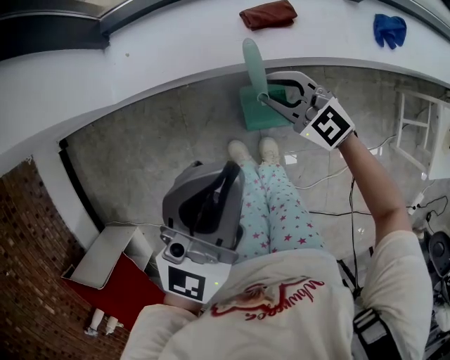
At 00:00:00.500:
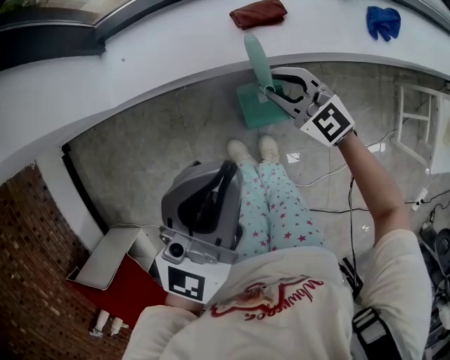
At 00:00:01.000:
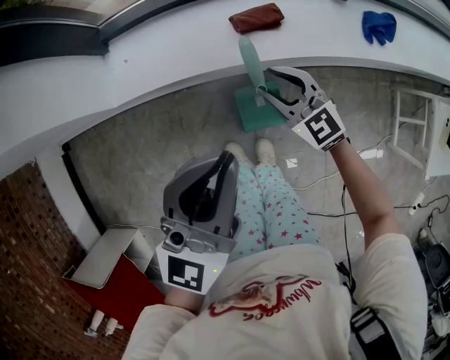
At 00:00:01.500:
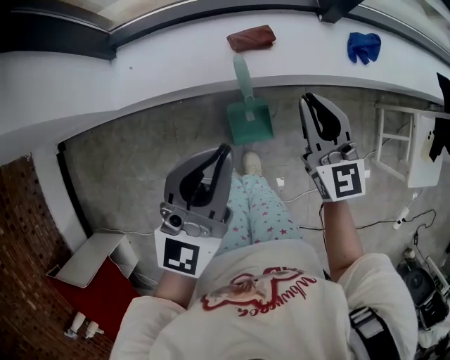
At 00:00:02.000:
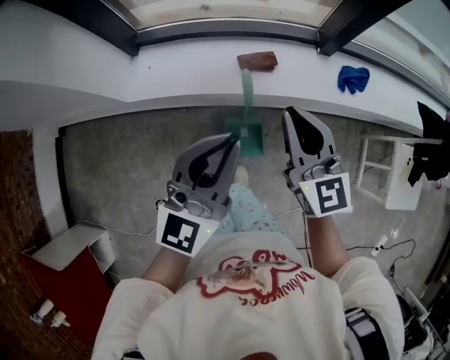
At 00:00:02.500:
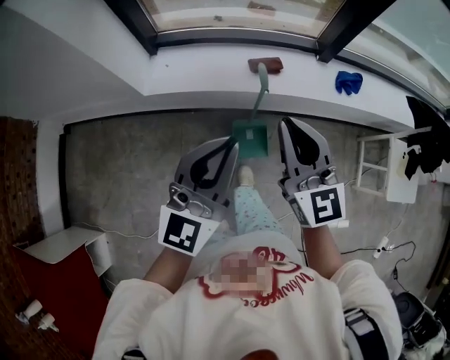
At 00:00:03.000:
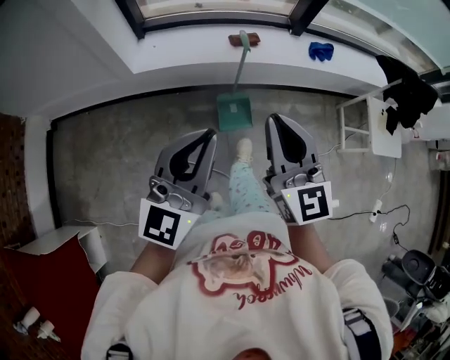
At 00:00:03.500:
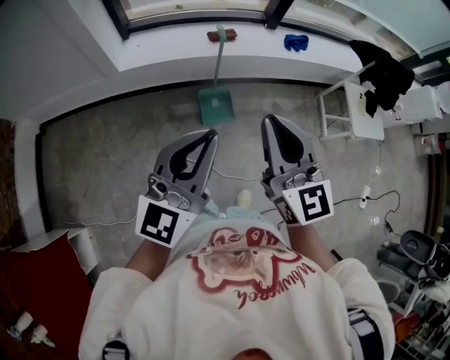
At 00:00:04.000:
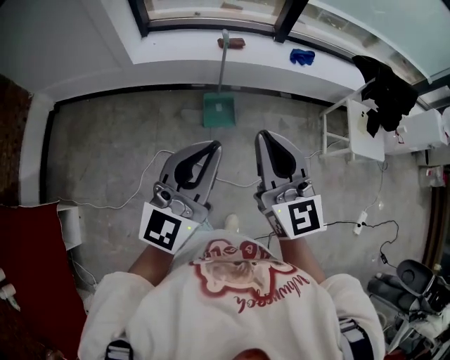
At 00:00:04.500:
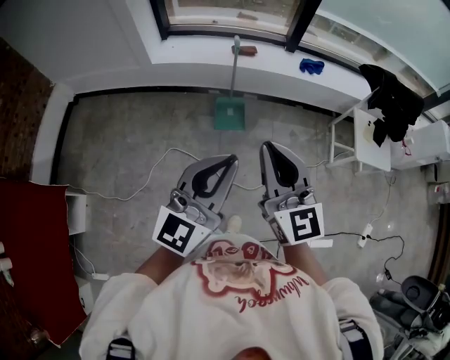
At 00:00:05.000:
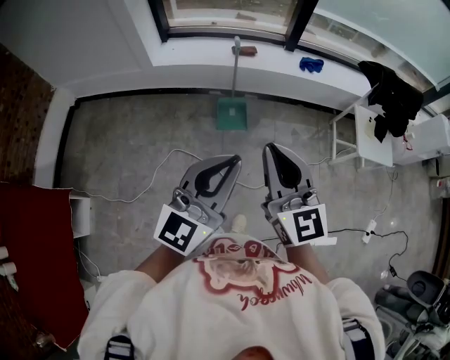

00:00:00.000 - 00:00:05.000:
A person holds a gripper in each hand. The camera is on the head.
00:00:00.000 - 00:00:02.500: The left gripper moves backward and upward, about 20 cm. Meanwhile the right gripper travels upward and backward by roughly 40 cm, and swivels roughly 40 degrees.
00:00:02.500 - 00:00:05.000: Both grippers are carried backward, some 50 cm.

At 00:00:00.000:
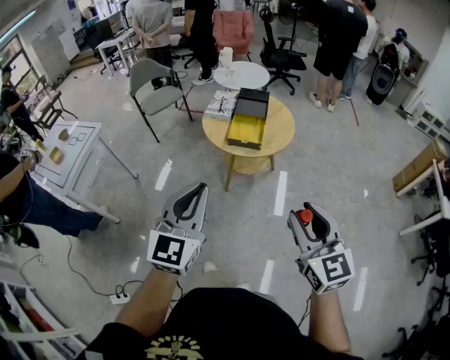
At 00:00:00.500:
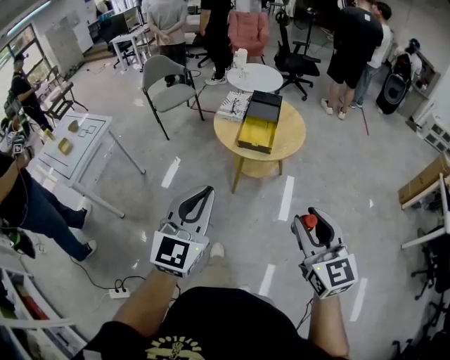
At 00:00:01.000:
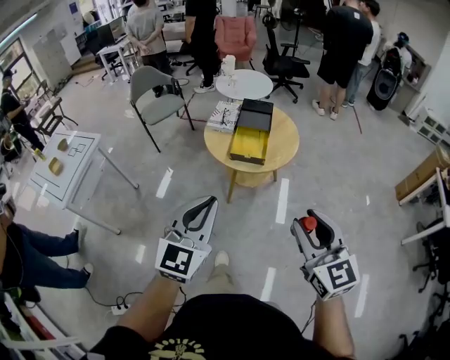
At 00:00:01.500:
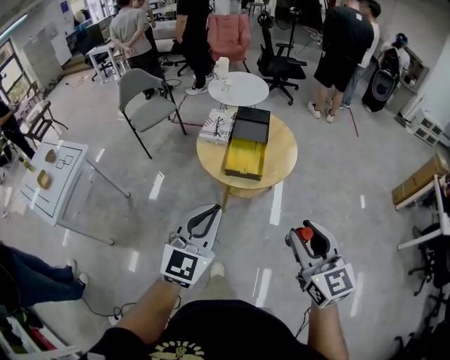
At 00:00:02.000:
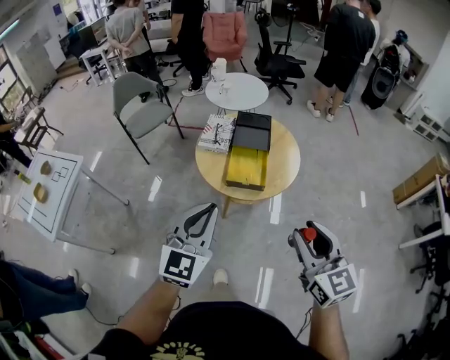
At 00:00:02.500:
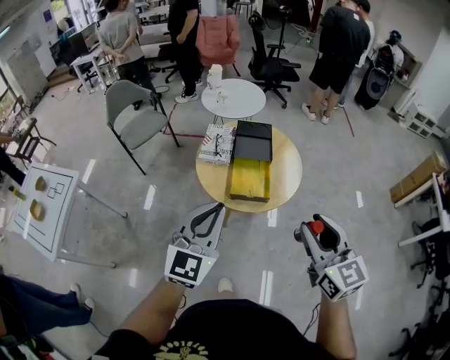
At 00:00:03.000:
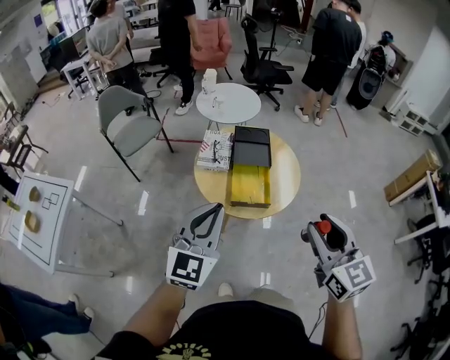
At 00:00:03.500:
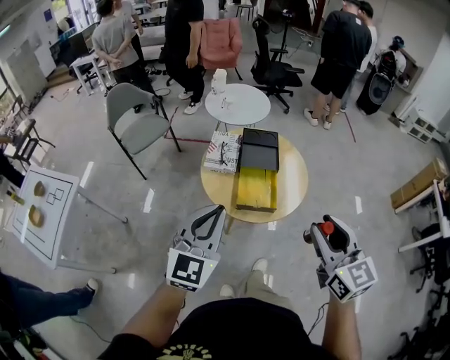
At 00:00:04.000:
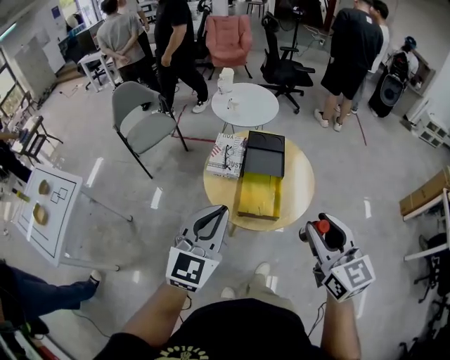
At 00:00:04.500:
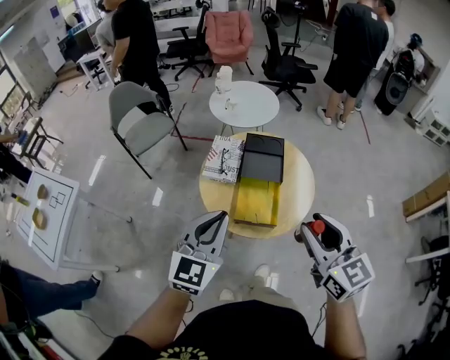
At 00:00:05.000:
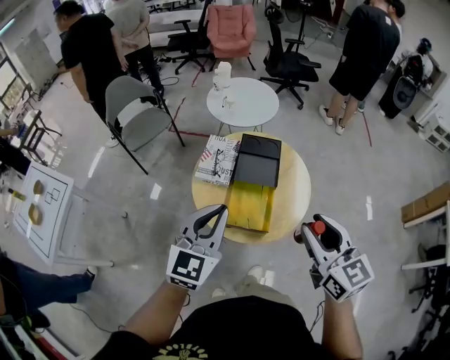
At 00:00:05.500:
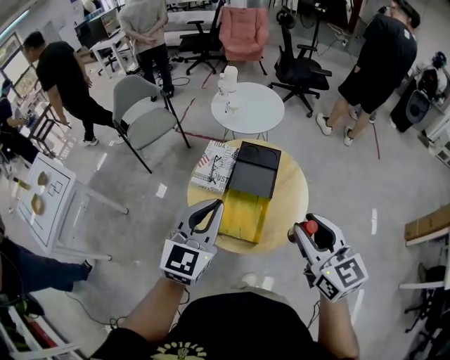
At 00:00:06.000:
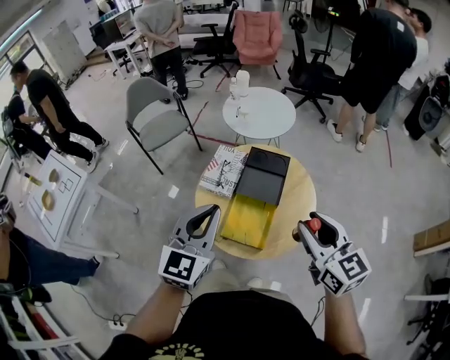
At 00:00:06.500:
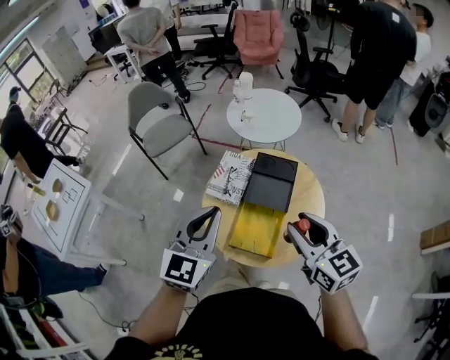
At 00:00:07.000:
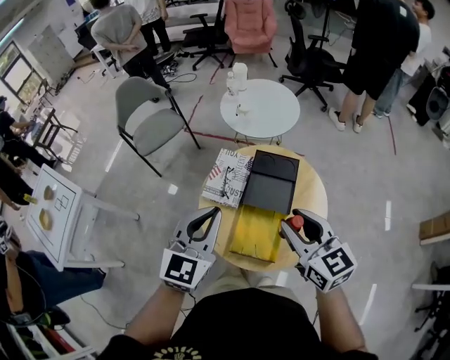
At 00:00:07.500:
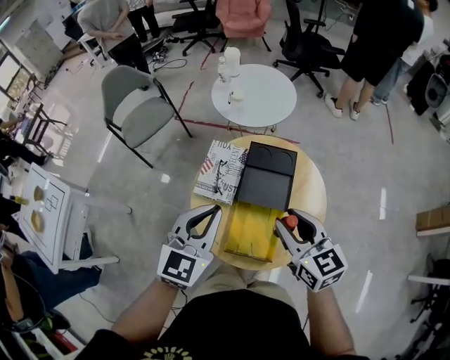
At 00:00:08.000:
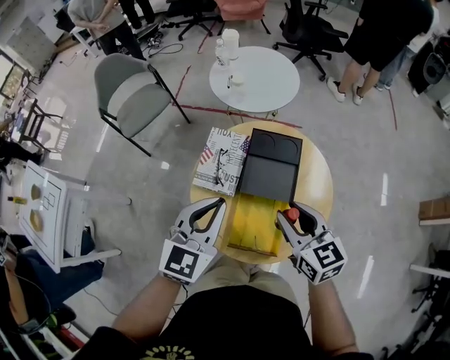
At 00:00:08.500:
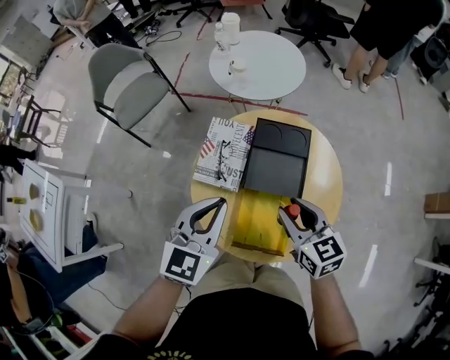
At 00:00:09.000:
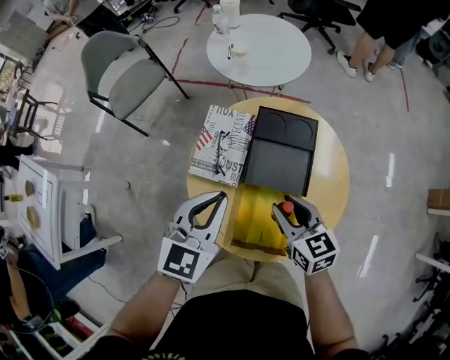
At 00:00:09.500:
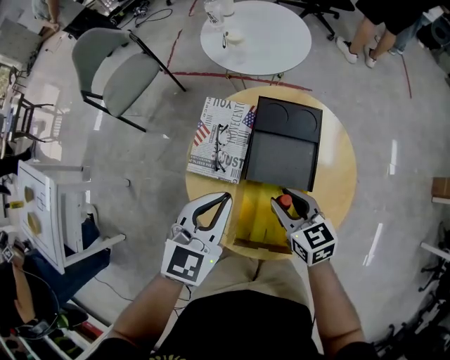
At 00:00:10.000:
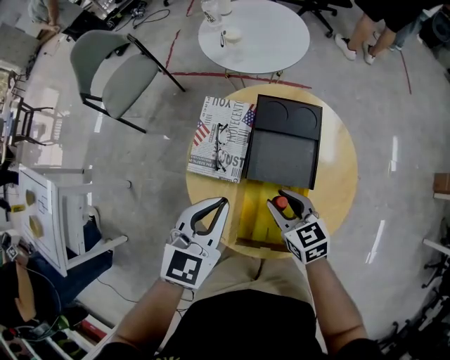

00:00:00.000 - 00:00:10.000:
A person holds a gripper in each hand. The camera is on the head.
00:00:00.000 - 00:00:02.000: Both grippers travel together forward, some 25 cm.
00:00:02.000 - 00:00:04.000: Both grippers move forward, approximately 15 cm.
00:00:04.000 - 00:00:06.000: Both grippers move forward and to the right, about 20 cm.
00:00:06.000 - 00:00:08.000: The left gripper is displaced forward and downward by about 20 cm, while the right gripper goes some 20 cm downward, forward and to the left.
00:00:08.000 - 00:00:10.000: The left gripper shifts approximately 15 cm downward. Meanwhile the right gripper shifts approximately 20 cm downward.

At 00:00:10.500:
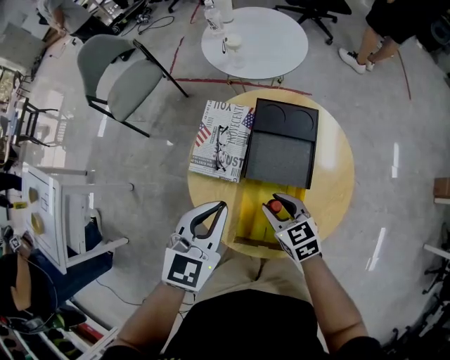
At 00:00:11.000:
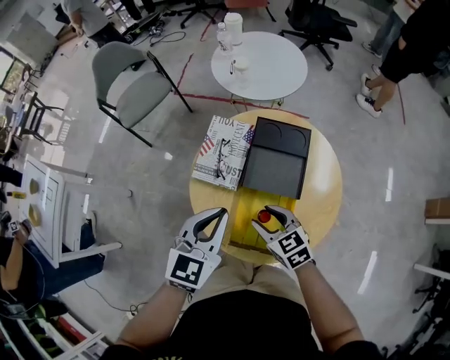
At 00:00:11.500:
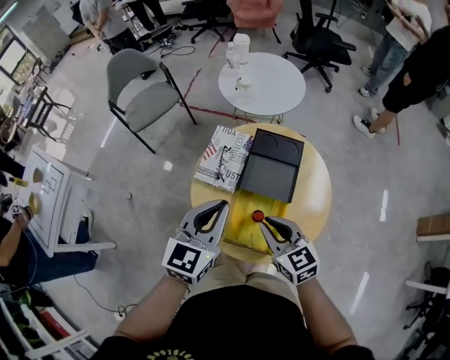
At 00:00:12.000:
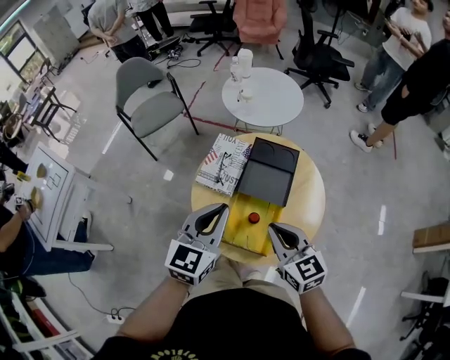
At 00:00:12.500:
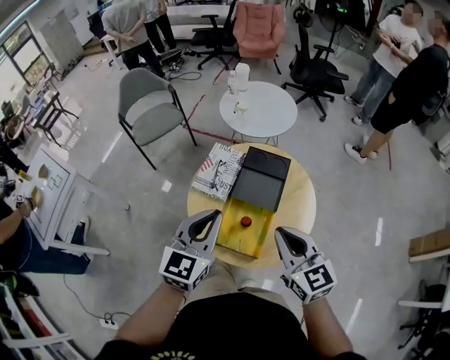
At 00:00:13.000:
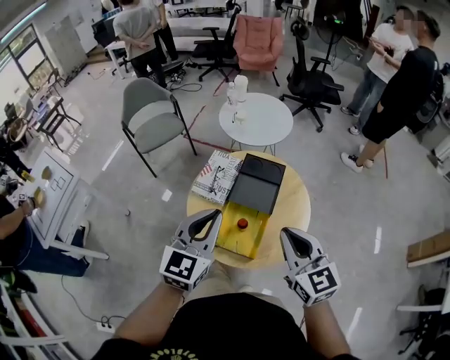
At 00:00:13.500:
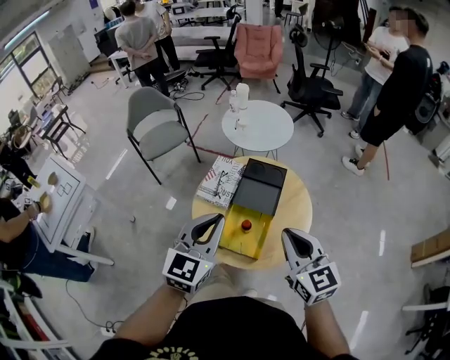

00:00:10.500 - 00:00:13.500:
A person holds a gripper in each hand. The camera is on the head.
00:00:10.500 - 00:00:12.000: The right gripper heads upward and backward, covering about 20 cm, and closes up. The left gripper moves upward and backward, approximately 15 cm.
00:00:12.000 - 00:00:13.500: The left gripper heads upward and backward, covering roughly 10 cm. The right gripper shifts approximately 15 cm upward, backward and to the right.

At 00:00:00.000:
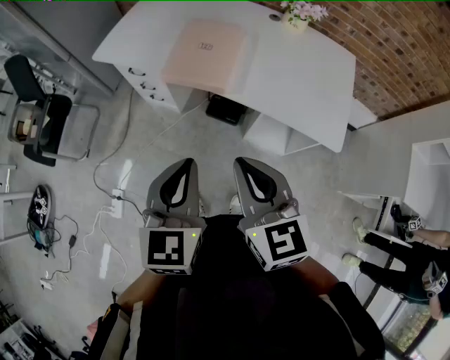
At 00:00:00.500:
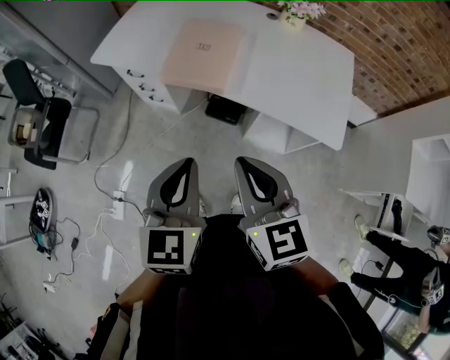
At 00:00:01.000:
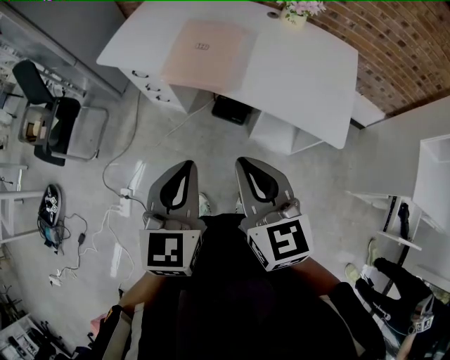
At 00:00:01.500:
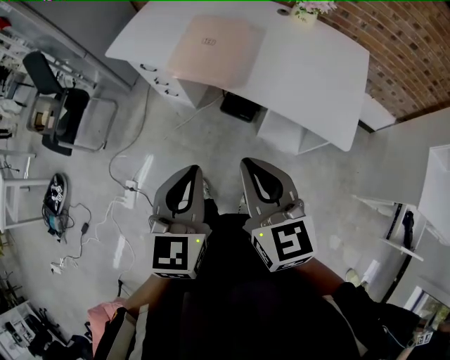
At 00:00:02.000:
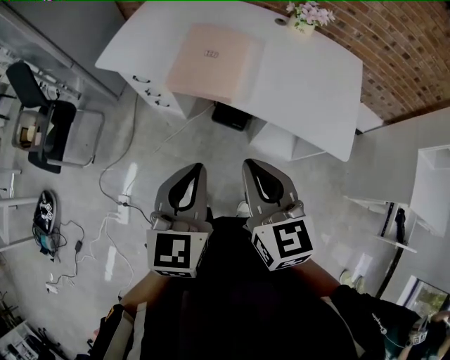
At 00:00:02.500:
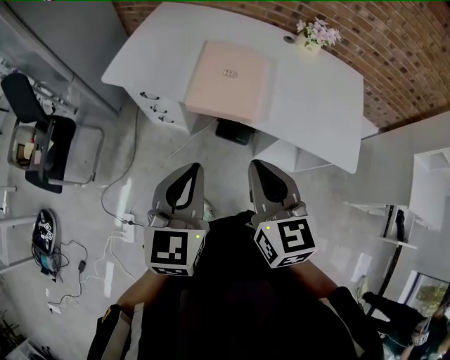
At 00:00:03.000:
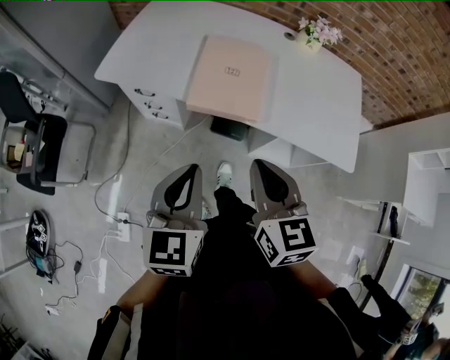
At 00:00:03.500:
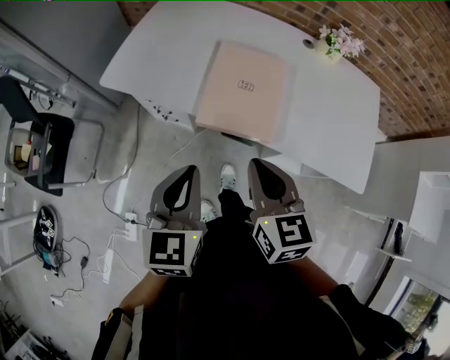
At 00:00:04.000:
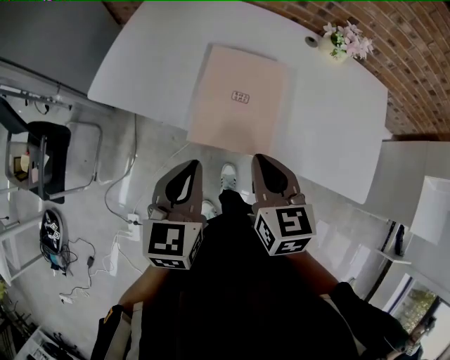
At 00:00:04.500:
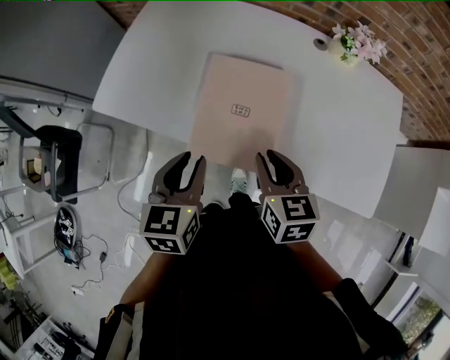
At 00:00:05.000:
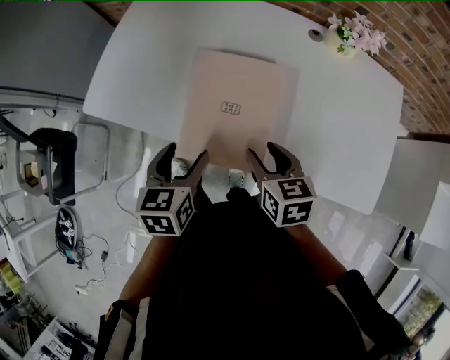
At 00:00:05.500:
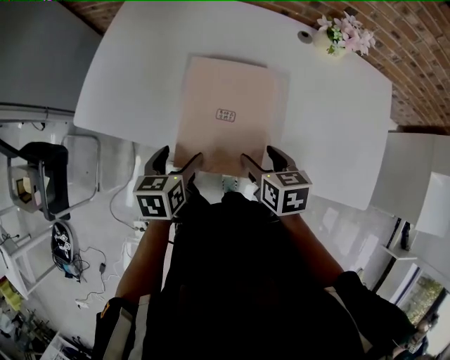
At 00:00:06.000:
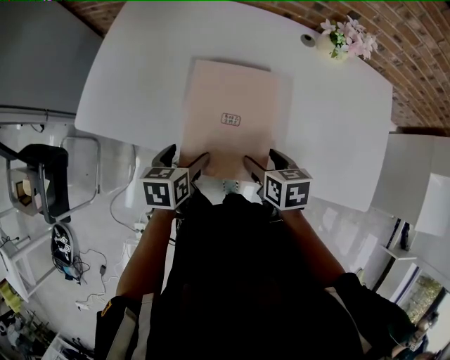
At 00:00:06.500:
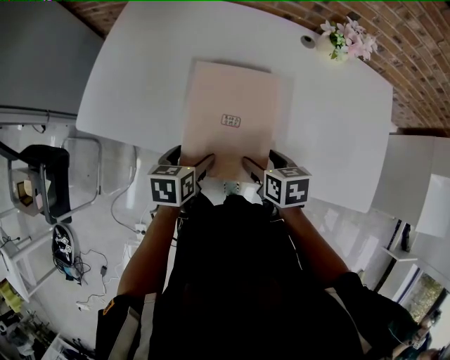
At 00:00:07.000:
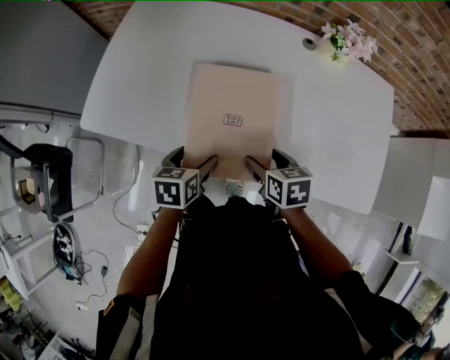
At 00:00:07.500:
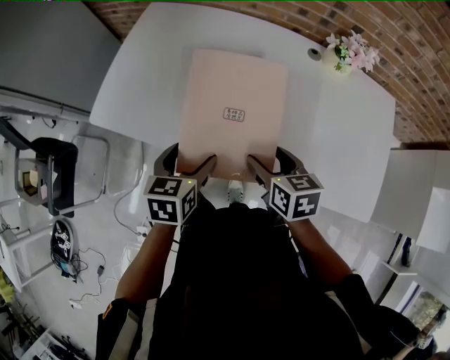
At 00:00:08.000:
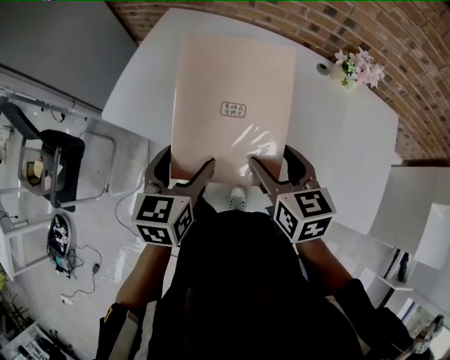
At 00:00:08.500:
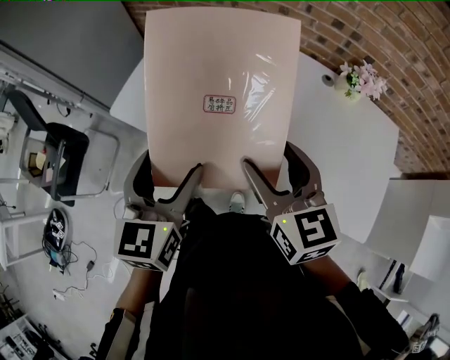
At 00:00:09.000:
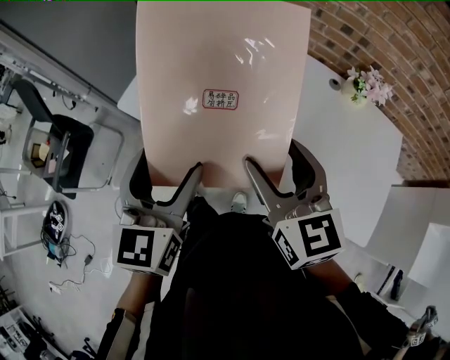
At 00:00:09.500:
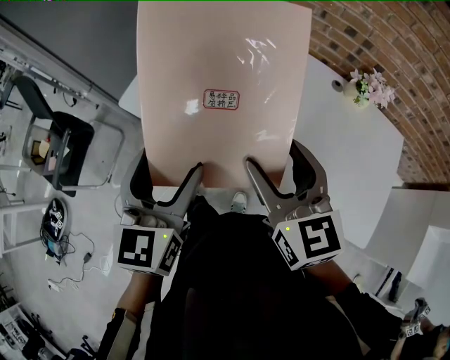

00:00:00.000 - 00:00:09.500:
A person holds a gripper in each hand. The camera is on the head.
00:00:02.000 - 00:00:04.000: The left gripper moves forward and to the left, some 25 cm; the right gripper shifts some 25 cm forward.
00:00:04.000 - 00:00:05.500: The right gripper moves downward, forward and to the right, about 15 cm, rotates approximately 20 degrees, and opens. The left gripper shifts about 20 cm downward and forward, swivels roughly 20 degrees, and opens its fingers.
00:00:05.500 - 00:00:07.500: The right gripper ends up approximately 5 cm from where it was. The left gripper is displaced upward by about 5 cm.
00:00:07.500 - 00:00:09.500: The grippers both shift upward and to the left by approximately 20 cm. The right gripper turns by approximately 40 degrees, while the left gripper swivels roughly 30 degrees.
